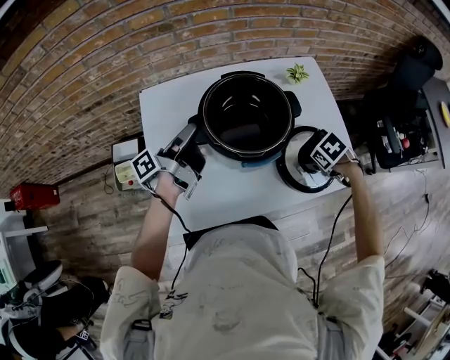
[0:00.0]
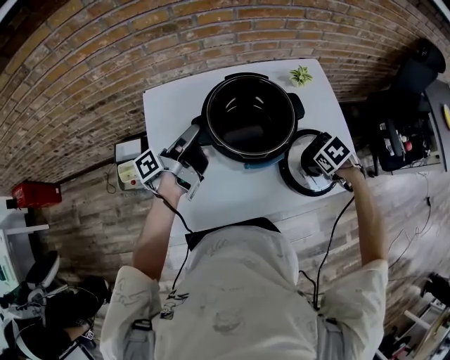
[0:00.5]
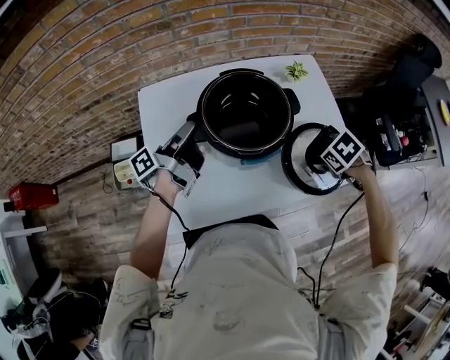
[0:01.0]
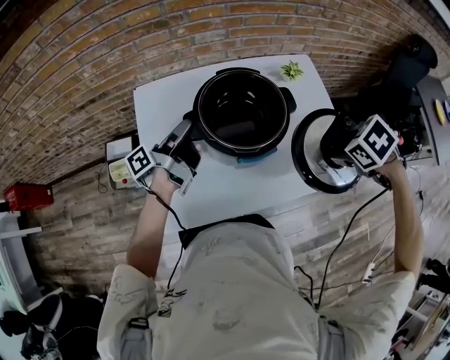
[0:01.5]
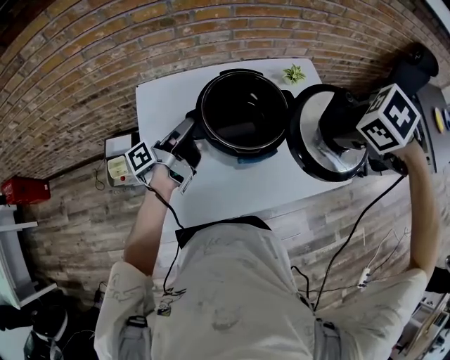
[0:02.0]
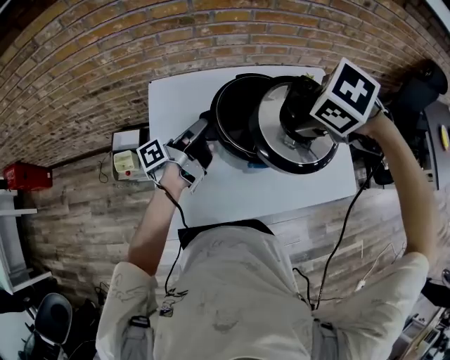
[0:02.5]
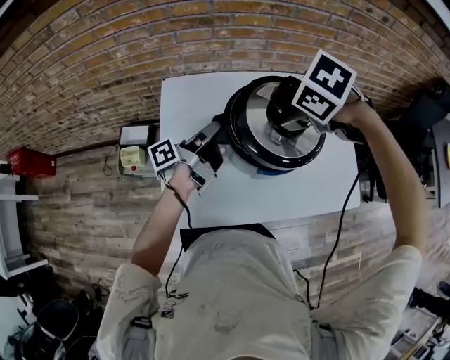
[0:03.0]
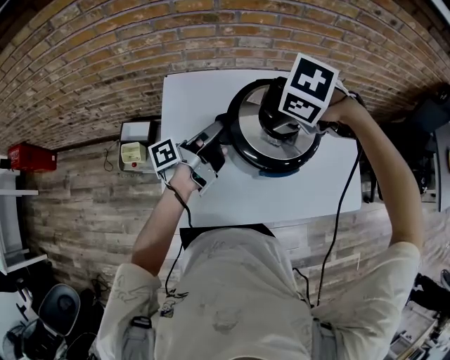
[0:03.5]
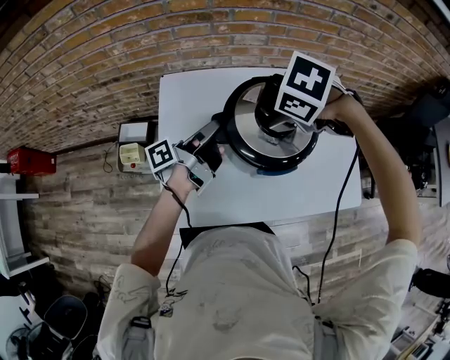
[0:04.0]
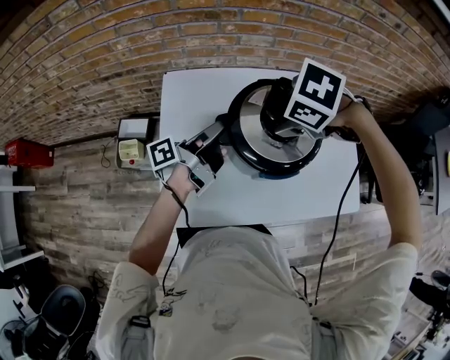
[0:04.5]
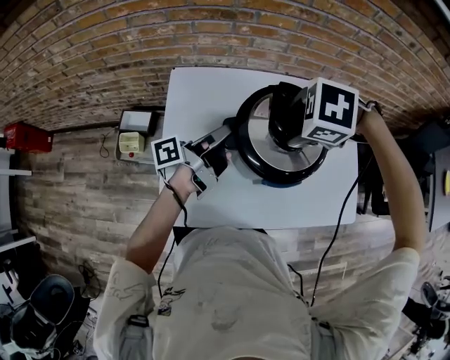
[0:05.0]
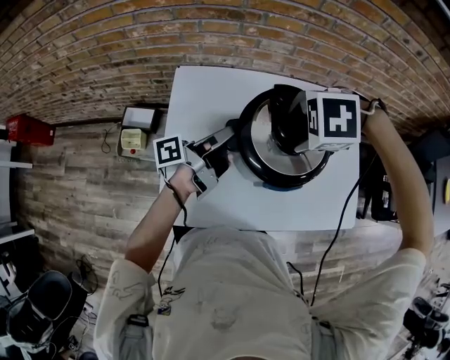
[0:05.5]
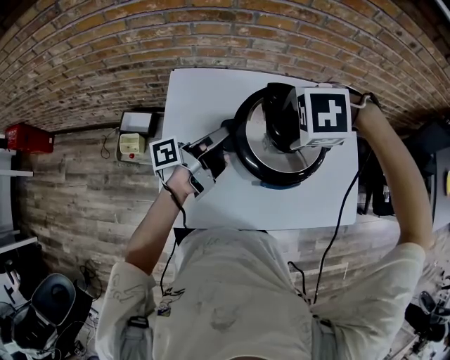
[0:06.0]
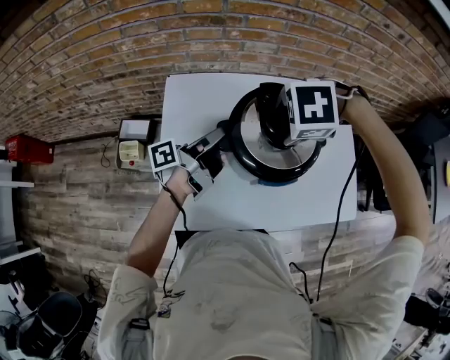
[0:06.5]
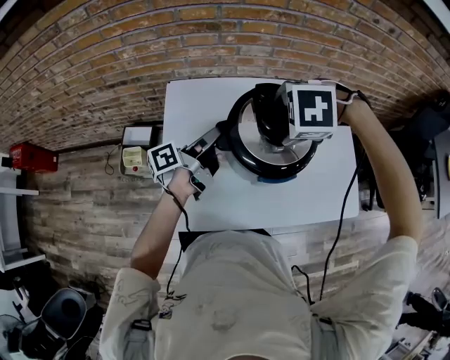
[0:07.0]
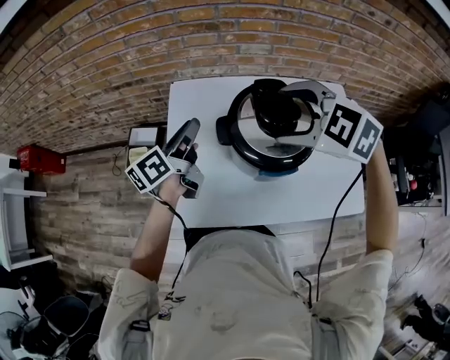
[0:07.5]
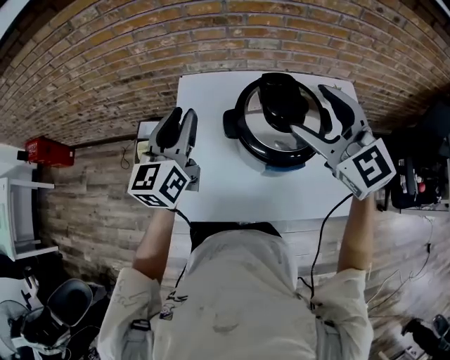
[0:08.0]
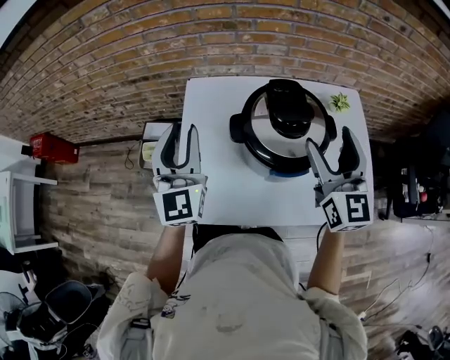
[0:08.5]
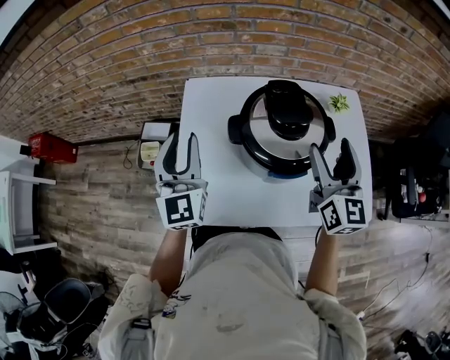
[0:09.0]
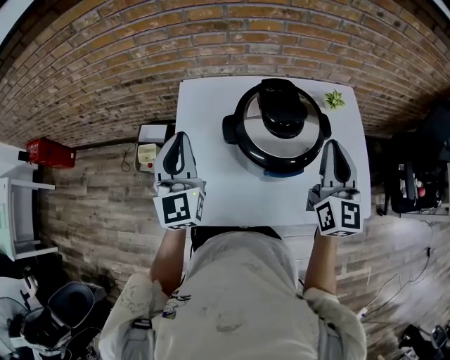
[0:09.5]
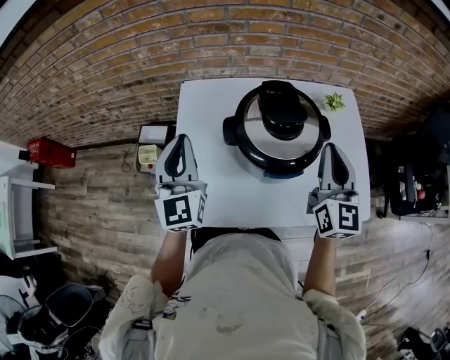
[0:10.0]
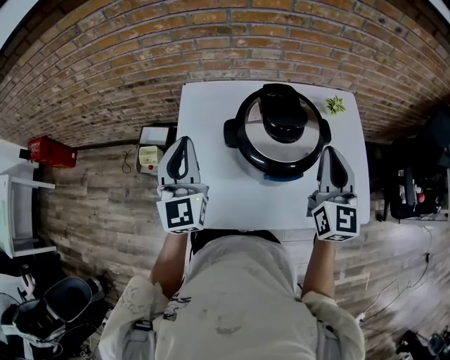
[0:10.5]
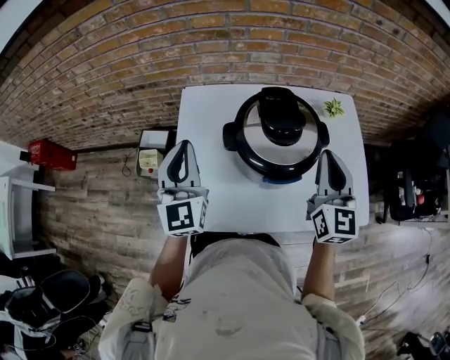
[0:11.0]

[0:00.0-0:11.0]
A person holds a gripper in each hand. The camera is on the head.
0:00.0 to 0:02.0: The right gripper heads upward, covering some 25 cm.
0:02.0 to 0:03.5: The right gripper shifts by about 25 cm, and swivels approximately 20 degrees.
0:03.5 to 0:05.5: The right gripper turns by some 40 degrees.
0:05.5 to 0:07.5: The right gripper is displaced upward by some 10 cm, and angles its fingers upward, by approximately 40 degrees; the left gripper shifts by about 10 cm, and swivels some 40 degrees.
0:07.5 to 0:09.0: The right gripper heads to the right and backward, covering roughly 10 cm, and points its fingers approximately 50 degrees further upward. Meanwhile the left gripper is displaced backward and upward by roughly 10 cm, and rotates around the line of its fingers by about 60 degrees, clockwise from behind.
0:09.0 to 0:11.0: The left gripper closes up; the right gripper closes up.

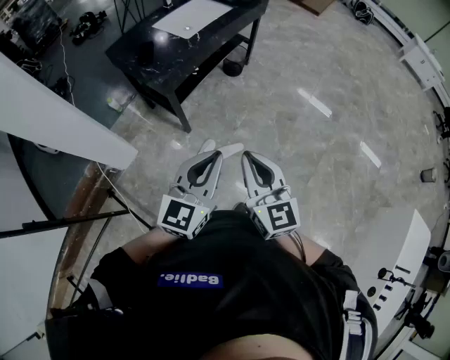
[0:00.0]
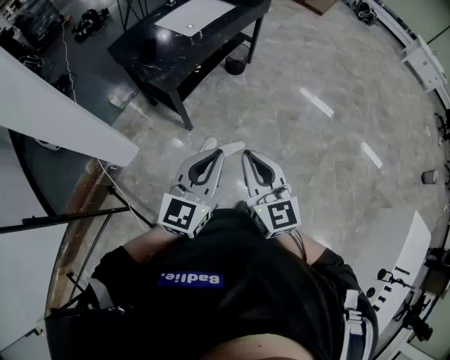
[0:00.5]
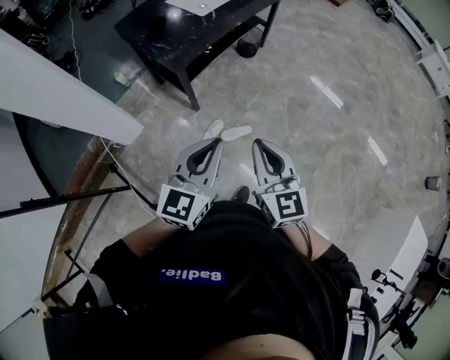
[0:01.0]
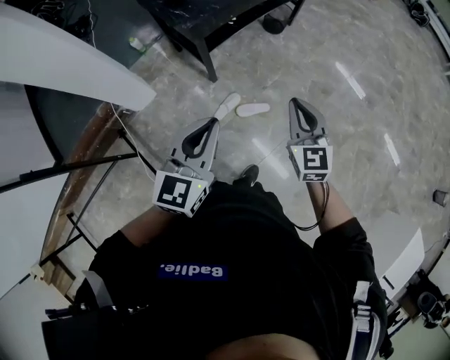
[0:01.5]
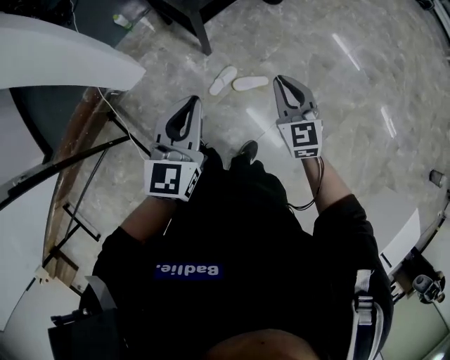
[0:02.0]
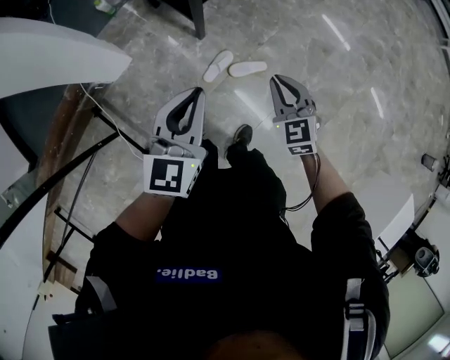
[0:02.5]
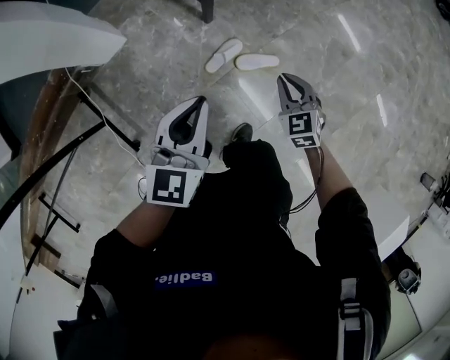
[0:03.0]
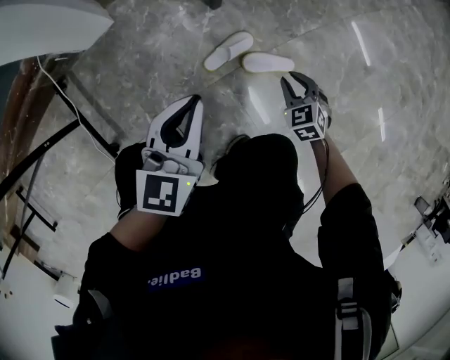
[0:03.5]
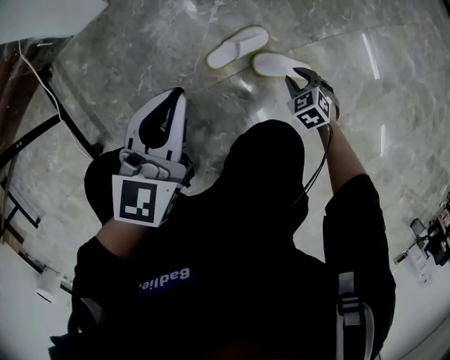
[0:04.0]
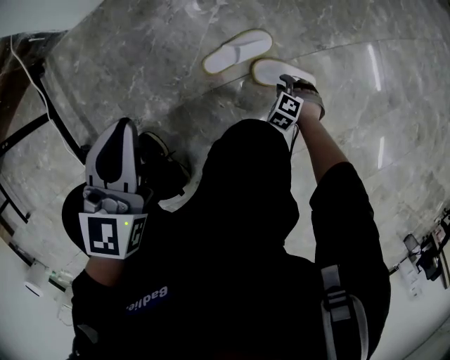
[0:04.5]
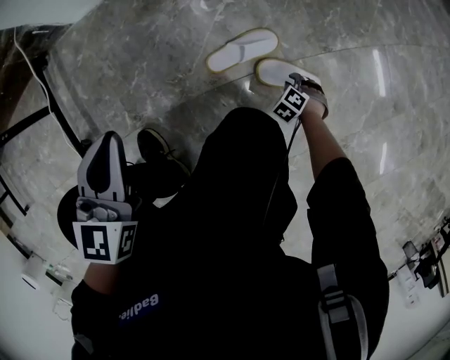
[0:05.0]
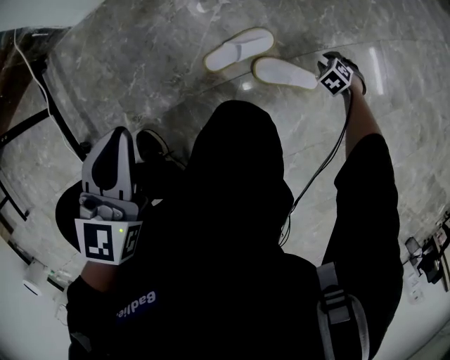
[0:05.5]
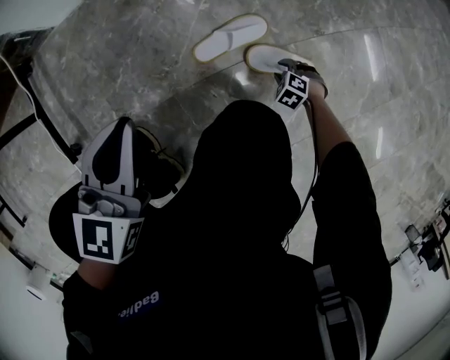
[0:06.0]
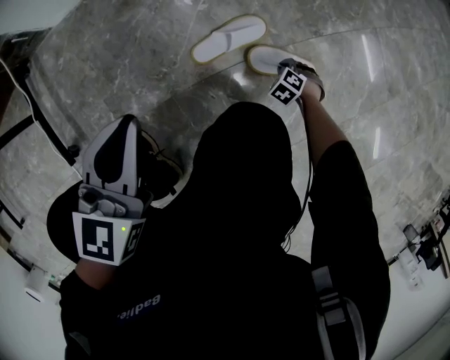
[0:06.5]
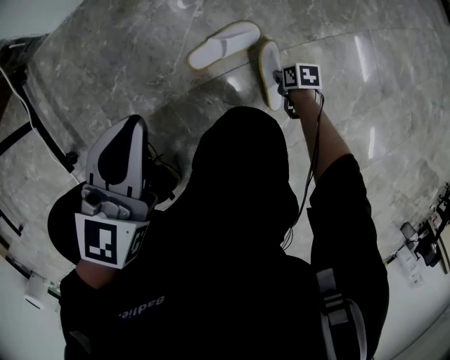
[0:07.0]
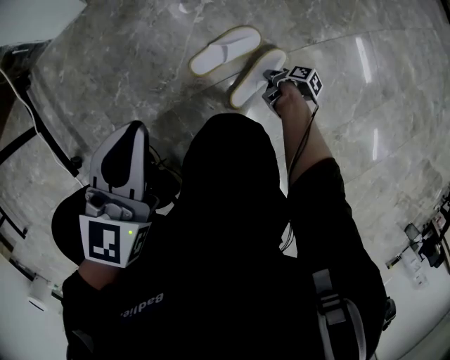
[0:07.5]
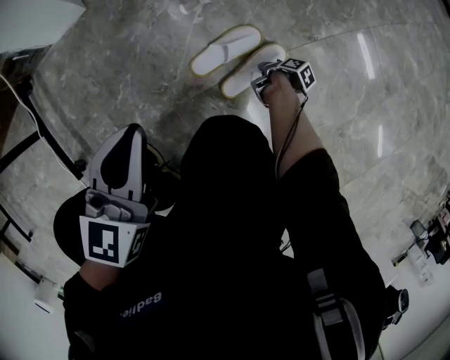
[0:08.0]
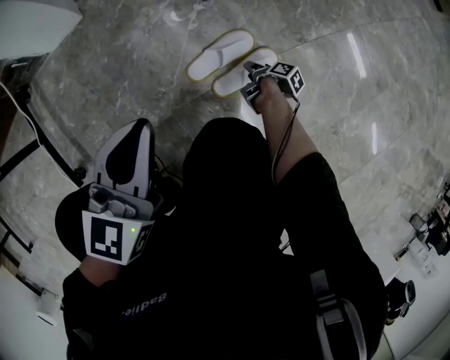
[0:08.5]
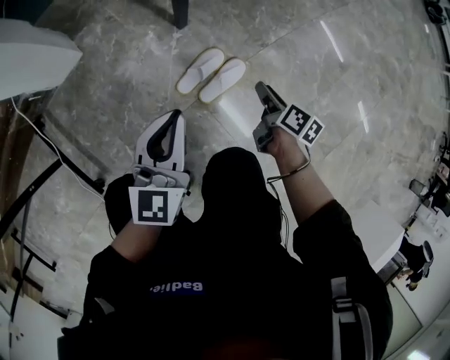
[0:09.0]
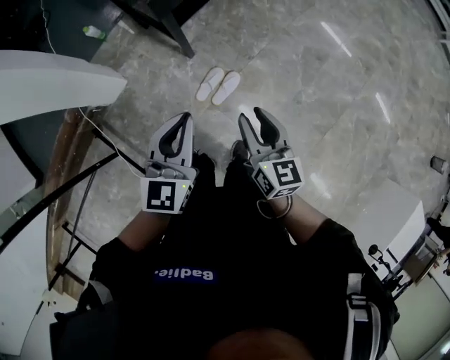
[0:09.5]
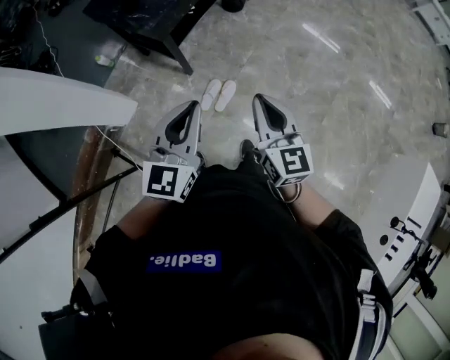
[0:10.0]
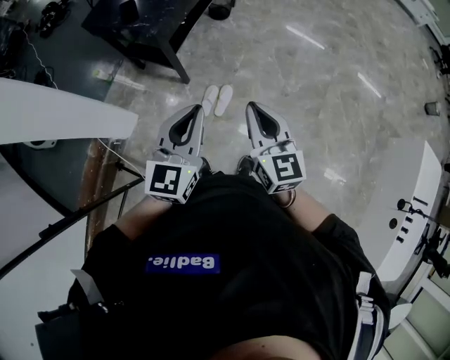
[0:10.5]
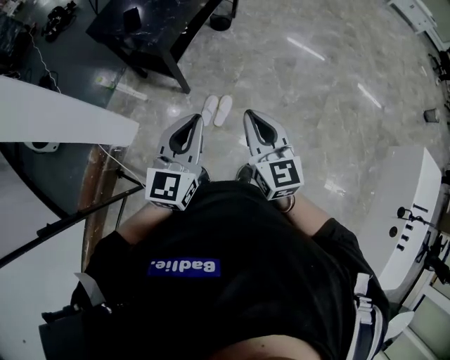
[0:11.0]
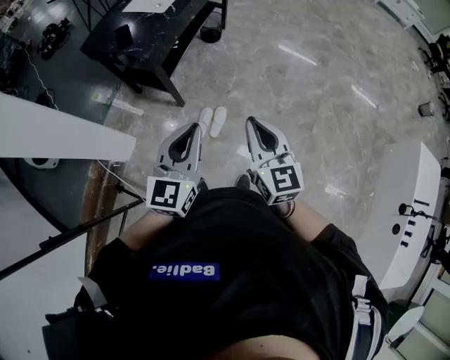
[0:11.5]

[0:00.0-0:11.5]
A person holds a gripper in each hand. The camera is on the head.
0:00.0 to 0:02.0: The left gripper is displaced to the left, downward and forward by approximately 20 cm, and rotates approximately 20 degrees; the right gripper shifts approximately 25 cm downward and forward, and rotates about 30 degrees.
0:02.0 to 0:04.0: Both grippers move downward, approximately 60 cm. The right gripper tilts its fingers about 40 degrees downward, and opens up.
0:04.0 to 0:06.0: The right gripper moves up and down over some 20 cm, changing direction 2 times, and turns by some 30 degrees; the left gripper shifts roughly 5 cm downward.
0:06.0 to 0:07.5: The right gripper twists some 130 degrees clockwise, seen from behind, and closes up.
0:07.5 to 0:09.5: The right gripper shifts about 80 cm upward, tips its fingers upward by some 40 degrees, and opens up; the left gripper travels upward by some 50 cm, and changes its angle by about 20 degrees.
0:09.5 to 0:11.5: The grippers both shift upward and backward by some 25 cm. The left gripper turns by about 20 degrees; the right gripper swivels approximately 20 degrees, and closes up.

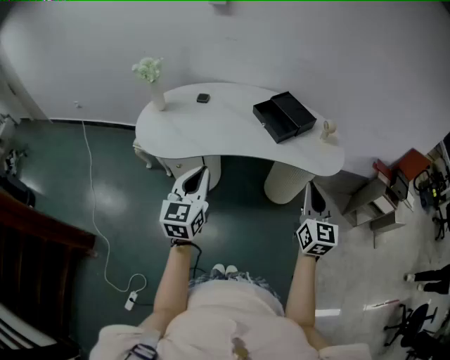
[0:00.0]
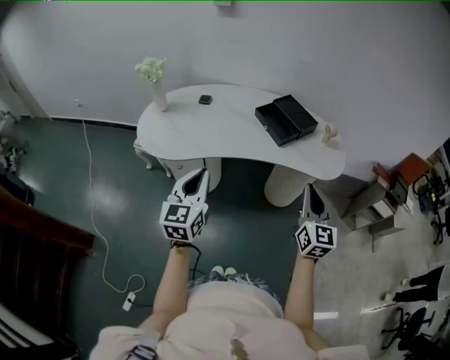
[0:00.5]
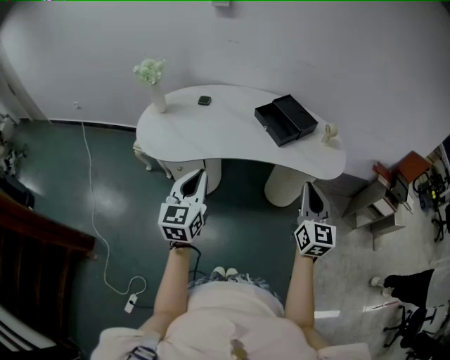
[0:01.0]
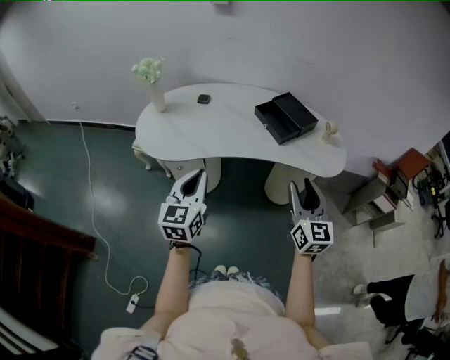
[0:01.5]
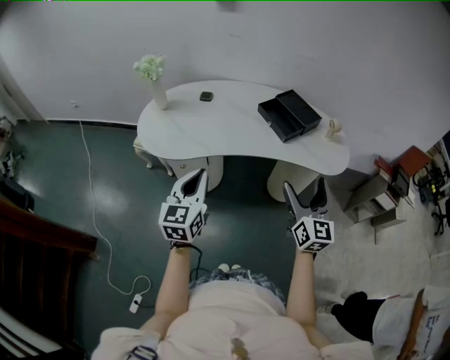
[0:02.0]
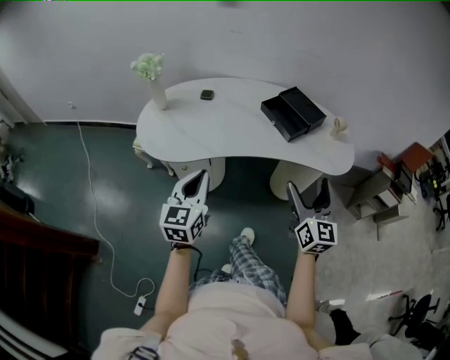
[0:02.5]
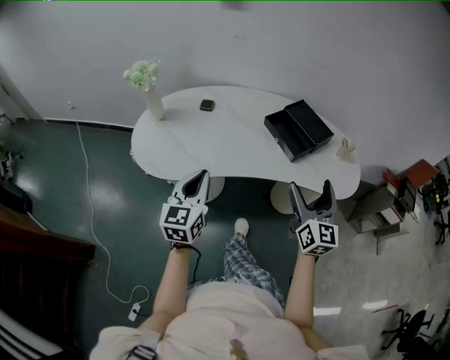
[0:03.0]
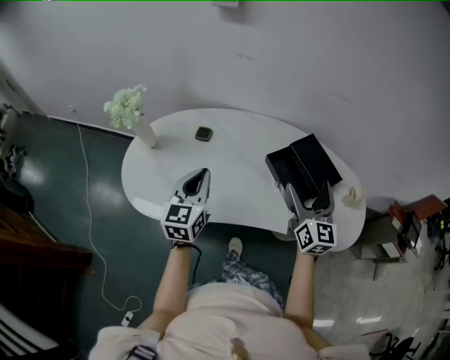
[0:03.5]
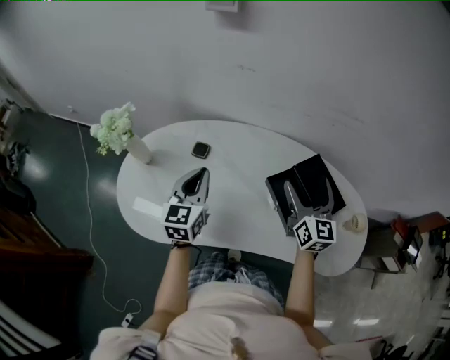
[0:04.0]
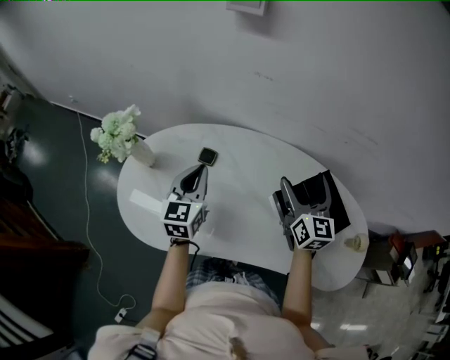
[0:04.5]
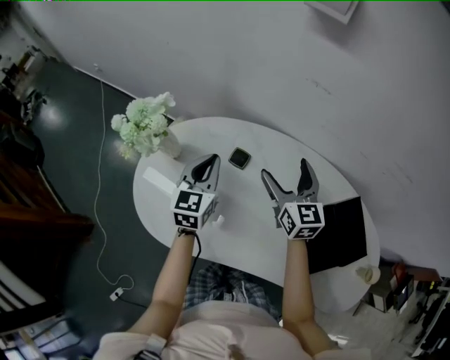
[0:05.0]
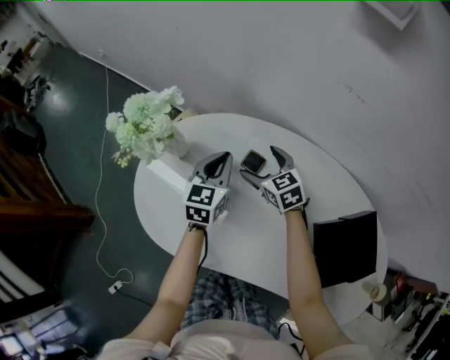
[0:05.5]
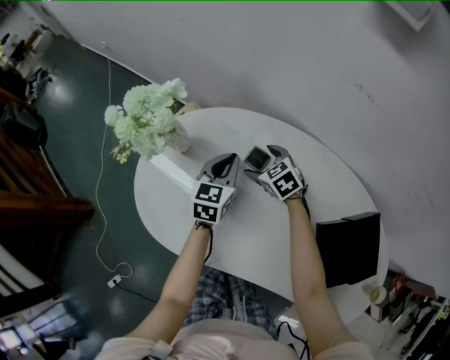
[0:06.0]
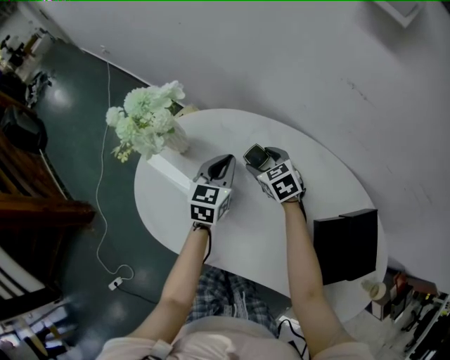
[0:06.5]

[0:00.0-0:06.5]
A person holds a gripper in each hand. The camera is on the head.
0:00.0 to 0:02.0: The left gripper shifts by some 5 cm. Meanwhile the right gripper heads to the left, covering roughly 5 cm, and opens its fingers.
0:02.0 to 0:04.5: The pair of grippers is taken forward, about 50 cm.
0:04.5 to 0:06.5: The right gripper moves approximately 40 cm, tips its fingers downward by about 40 degrees, and closes its fingers. Meanwhile the left gripper travels downward by roughly 15 cm.
